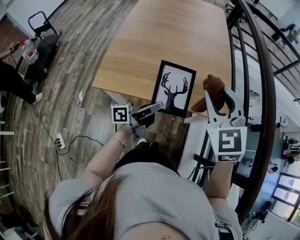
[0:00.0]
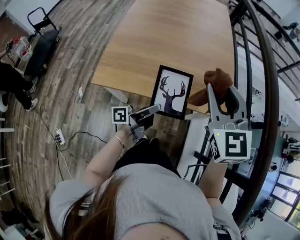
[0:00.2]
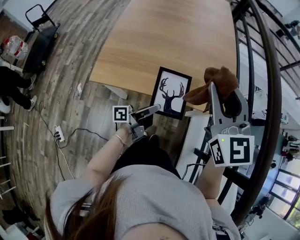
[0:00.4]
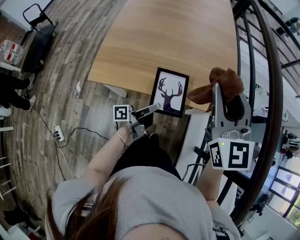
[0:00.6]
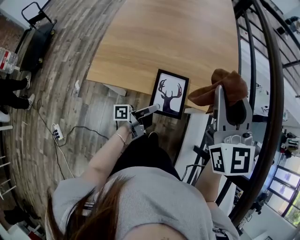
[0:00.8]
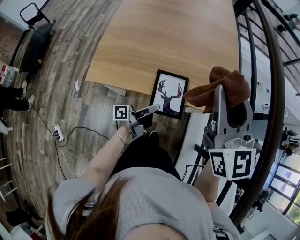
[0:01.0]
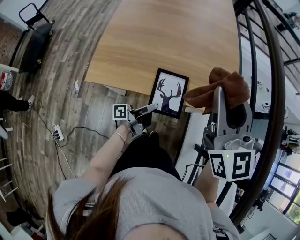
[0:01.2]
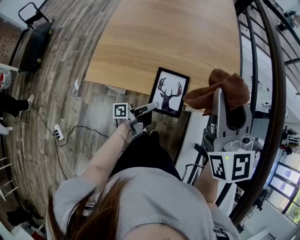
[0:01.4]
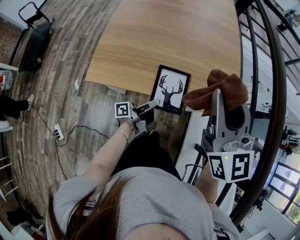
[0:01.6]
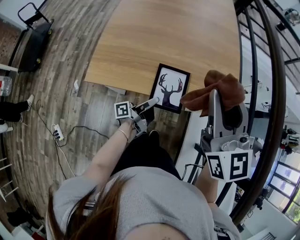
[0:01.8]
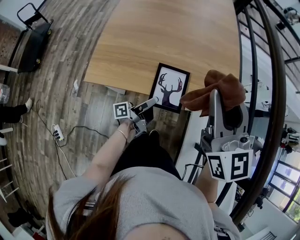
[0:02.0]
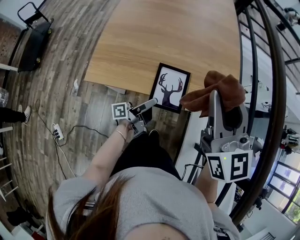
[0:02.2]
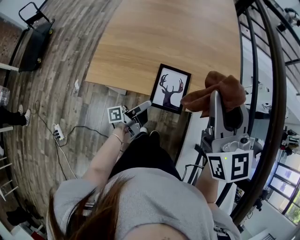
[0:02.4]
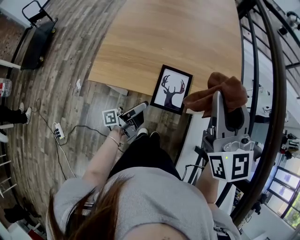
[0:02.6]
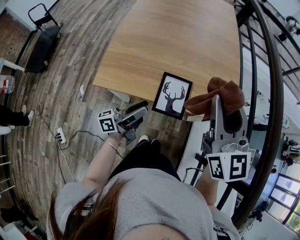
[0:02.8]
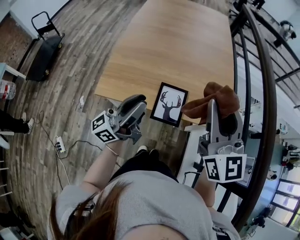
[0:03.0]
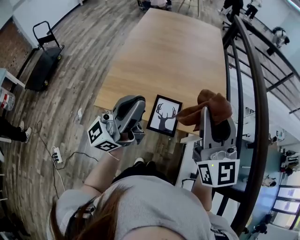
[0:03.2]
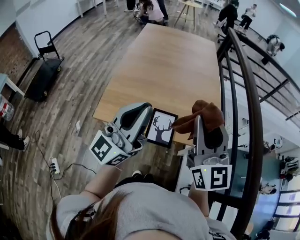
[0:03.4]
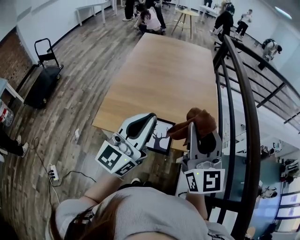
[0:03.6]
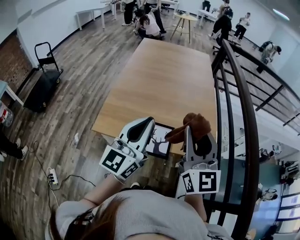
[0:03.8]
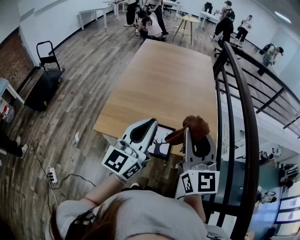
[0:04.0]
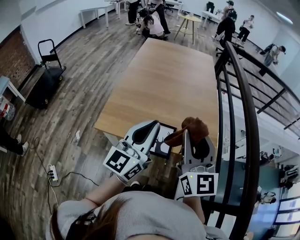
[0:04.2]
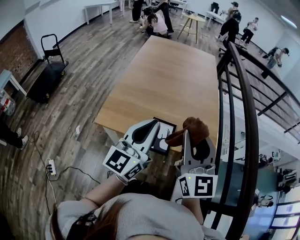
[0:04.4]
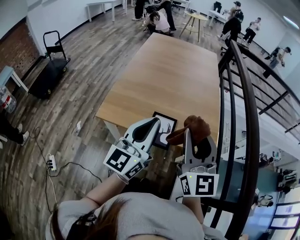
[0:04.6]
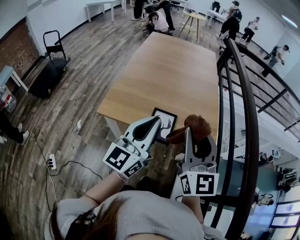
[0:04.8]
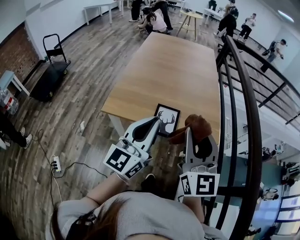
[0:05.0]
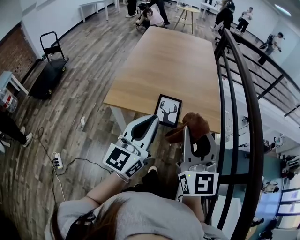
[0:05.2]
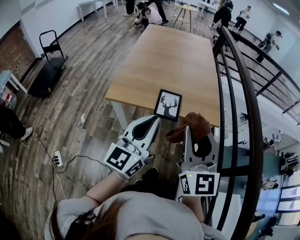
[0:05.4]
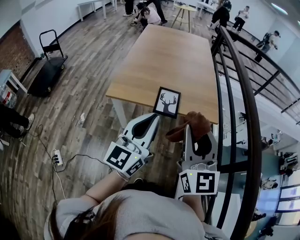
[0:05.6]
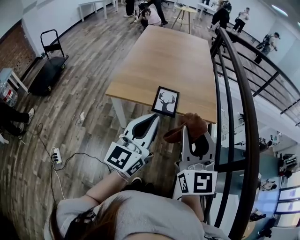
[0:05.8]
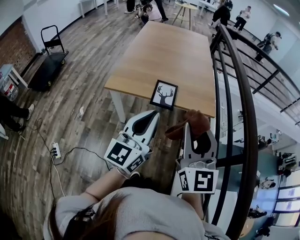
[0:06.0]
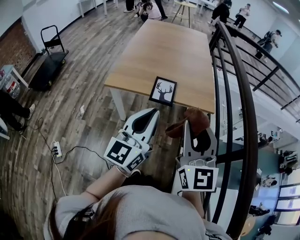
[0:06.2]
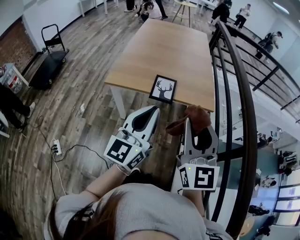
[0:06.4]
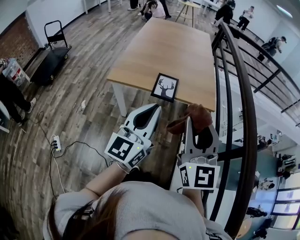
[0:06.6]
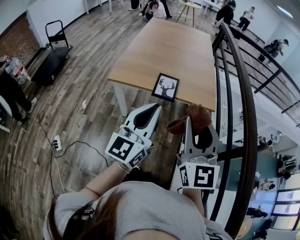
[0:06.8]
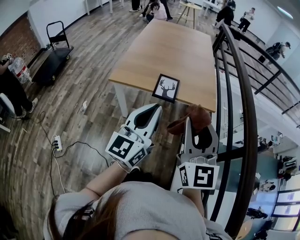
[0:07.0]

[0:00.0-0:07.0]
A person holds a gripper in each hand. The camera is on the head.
0:00.0 to 0:01.4: The left gripper is displaced downward by some 15 cm, and swivels about 20 degrees. Meanwhile the right gripper changes its angle by roughly 40 degrees.
0:01.4 to 0:02.8: The left gripper heads upward and to the left, covering approximately 10 cm, changes its angle by roughly 30 degrees, and opens its fingers.
0:02.8 to 0:04.2: The left gripper goes approximately 25 cm upward, twists approximately 60 degrees clockwise, seen from behind, and closes its fingers. Meanwhile the right gripper shifts by some 5 cm.
0:04.2 to 0:05.6: The grippers both shift backward by some 25 cm.
0:05.6 to 0:07.0: The grippers both shift backward by approximately 5 cm.

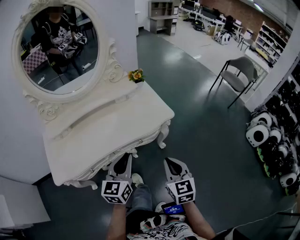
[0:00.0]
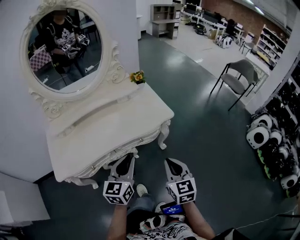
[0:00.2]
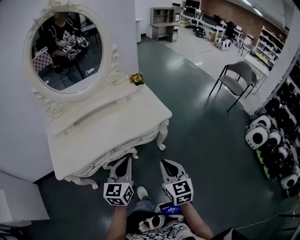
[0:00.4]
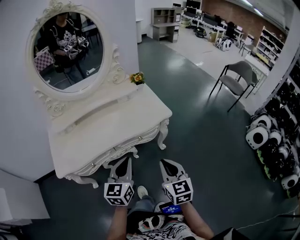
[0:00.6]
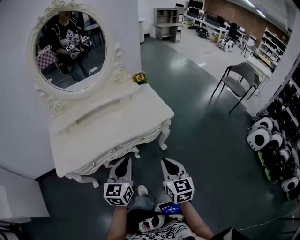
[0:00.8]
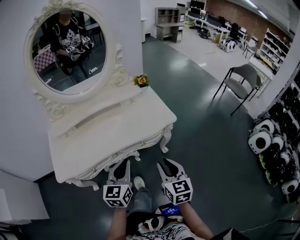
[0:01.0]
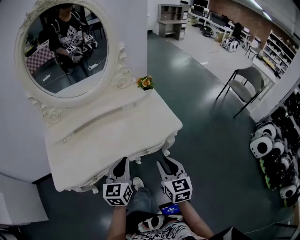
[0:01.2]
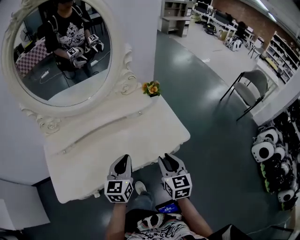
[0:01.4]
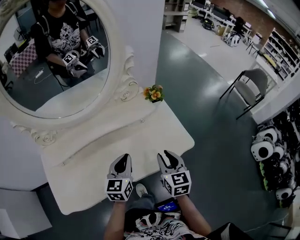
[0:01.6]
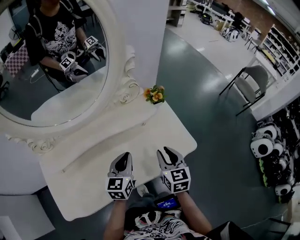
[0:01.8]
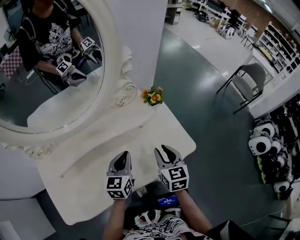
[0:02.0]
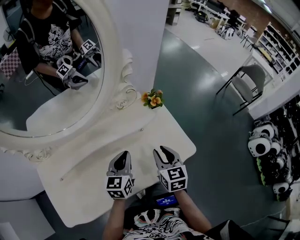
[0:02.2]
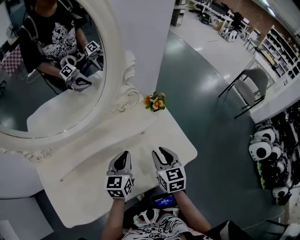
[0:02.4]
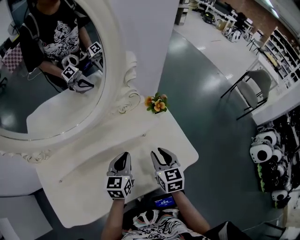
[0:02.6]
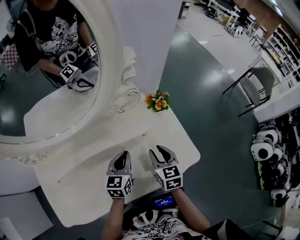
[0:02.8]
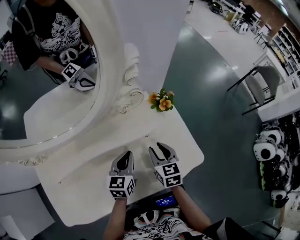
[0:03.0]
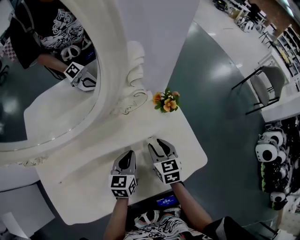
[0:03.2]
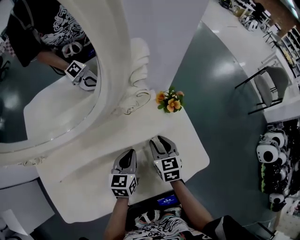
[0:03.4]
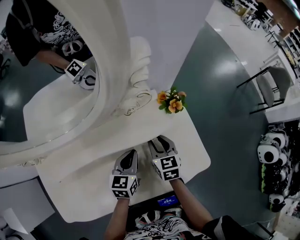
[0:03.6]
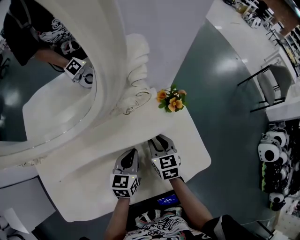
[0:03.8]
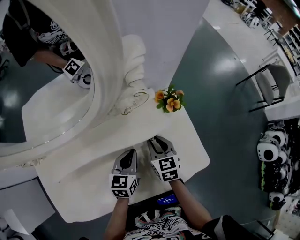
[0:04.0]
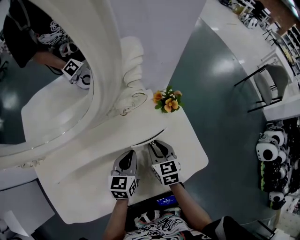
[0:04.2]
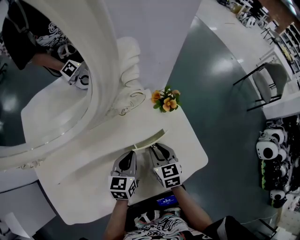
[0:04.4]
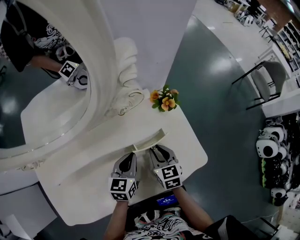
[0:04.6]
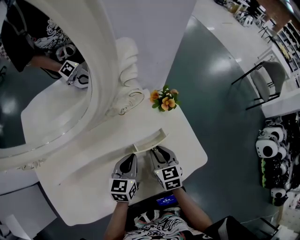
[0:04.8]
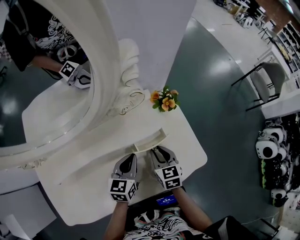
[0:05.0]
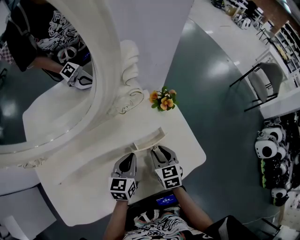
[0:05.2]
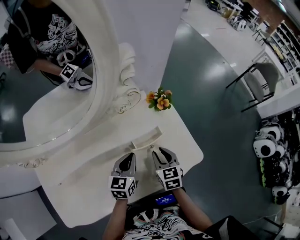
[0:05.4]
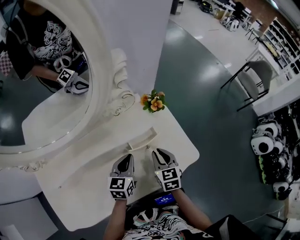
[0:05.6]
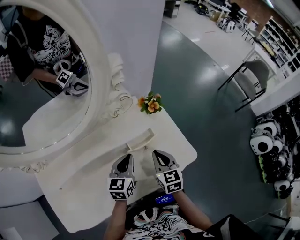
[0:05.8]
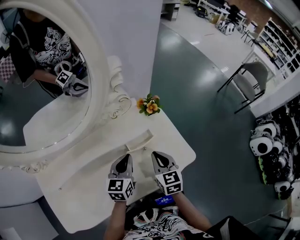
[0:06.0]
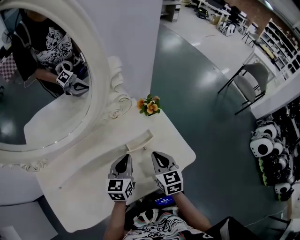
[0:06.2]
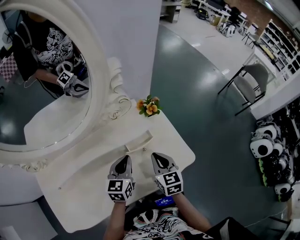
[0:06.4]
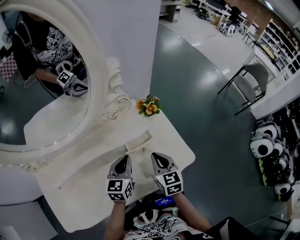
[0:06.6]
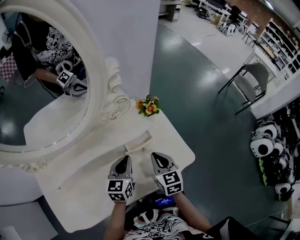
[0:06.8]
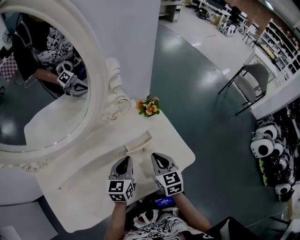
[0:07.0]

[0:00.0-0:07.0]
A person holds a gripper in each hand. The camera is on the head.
0:00.0 to 0:01.4: The left gripper is displaced forward and to the left by some 15 cm; the right gripper goes roughly 15 cm forward, and opens.
0:01.4 to 0:02.8: The left gripper heads forward and downward, covering roughly 25 cm, while the right gripper shifts roughly 20 cm forward.
0:02.8 to 0:04.2: The right gripper goes some 10 cm downward and forward, while the left gripper ends up about 5 cm from where it was.
0:04.2 to 0:05.6: The right gripper goes about 5 cm backward.
0:05.6 to 0:07.0: There are only small adjustments of the grippers.

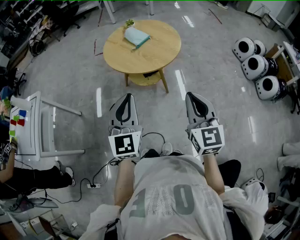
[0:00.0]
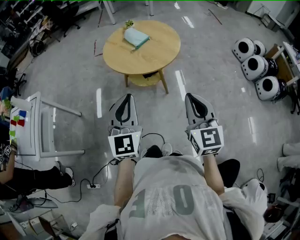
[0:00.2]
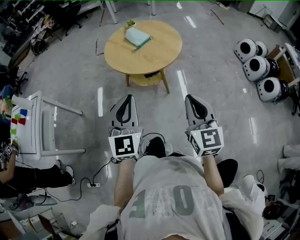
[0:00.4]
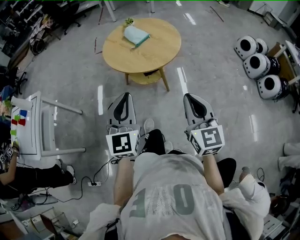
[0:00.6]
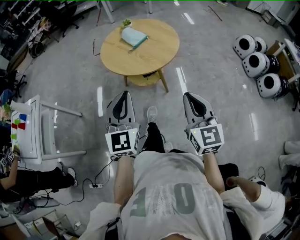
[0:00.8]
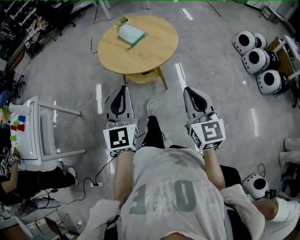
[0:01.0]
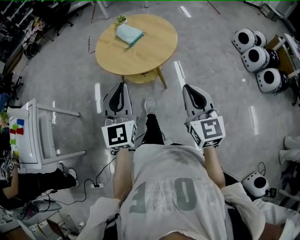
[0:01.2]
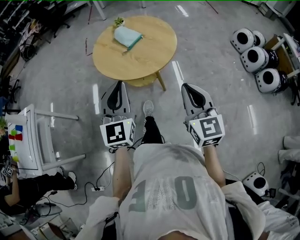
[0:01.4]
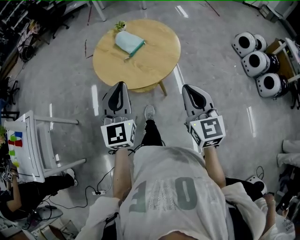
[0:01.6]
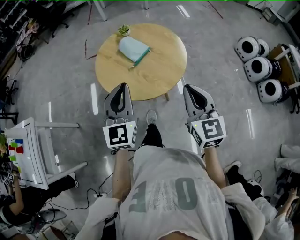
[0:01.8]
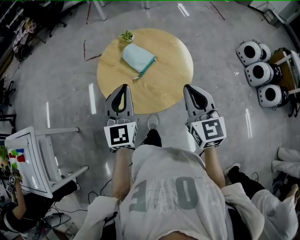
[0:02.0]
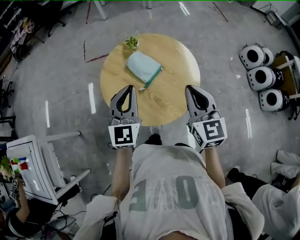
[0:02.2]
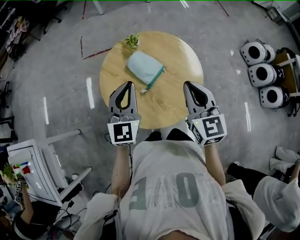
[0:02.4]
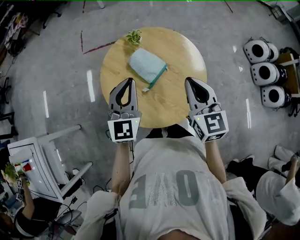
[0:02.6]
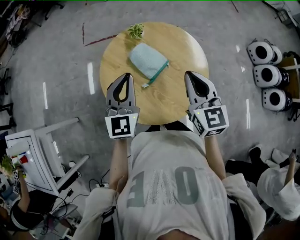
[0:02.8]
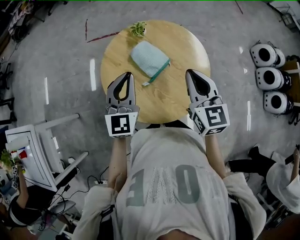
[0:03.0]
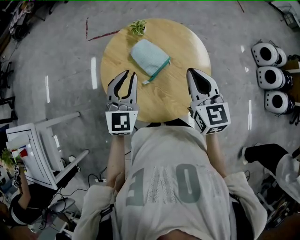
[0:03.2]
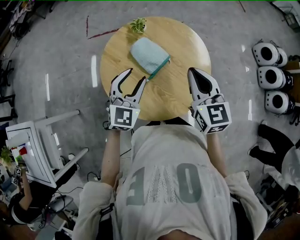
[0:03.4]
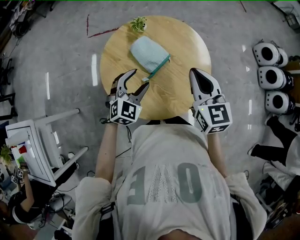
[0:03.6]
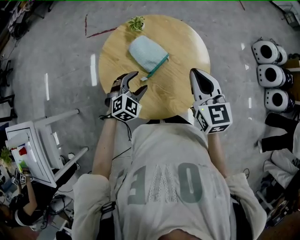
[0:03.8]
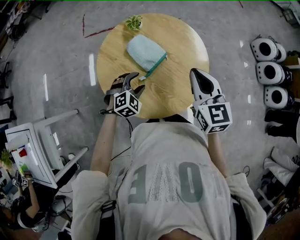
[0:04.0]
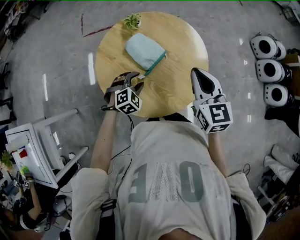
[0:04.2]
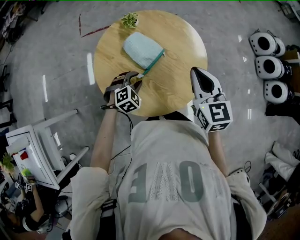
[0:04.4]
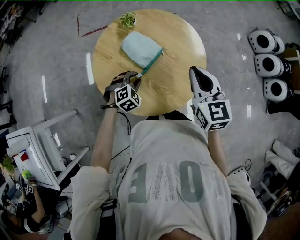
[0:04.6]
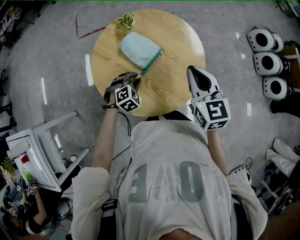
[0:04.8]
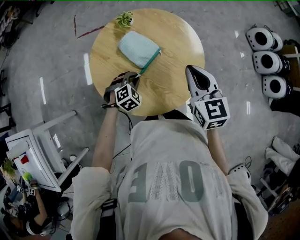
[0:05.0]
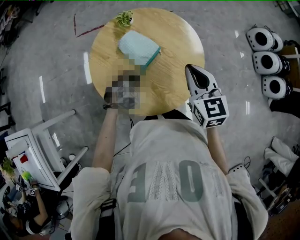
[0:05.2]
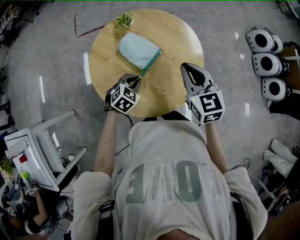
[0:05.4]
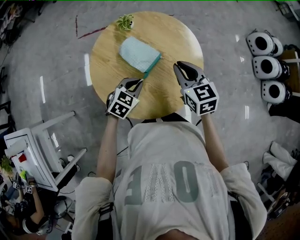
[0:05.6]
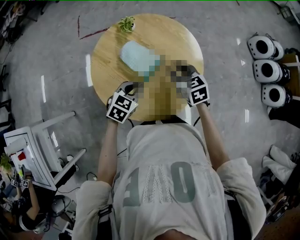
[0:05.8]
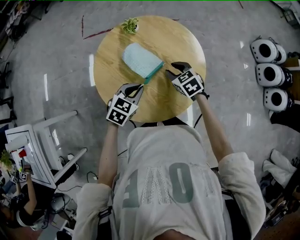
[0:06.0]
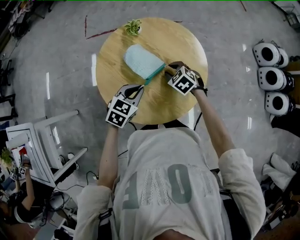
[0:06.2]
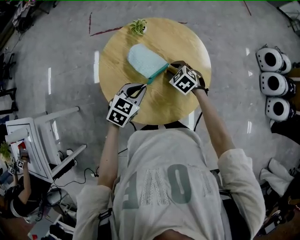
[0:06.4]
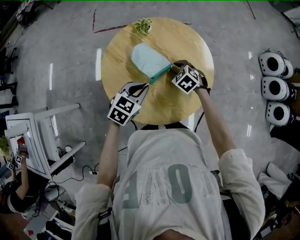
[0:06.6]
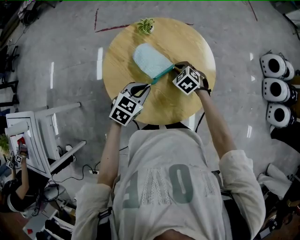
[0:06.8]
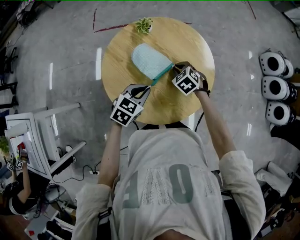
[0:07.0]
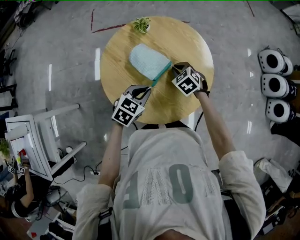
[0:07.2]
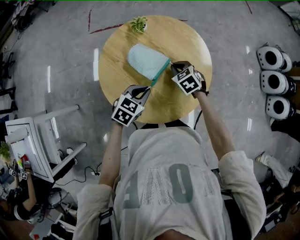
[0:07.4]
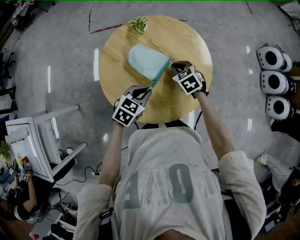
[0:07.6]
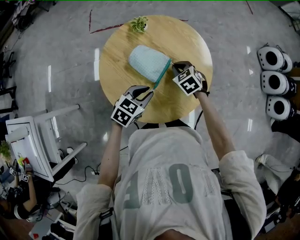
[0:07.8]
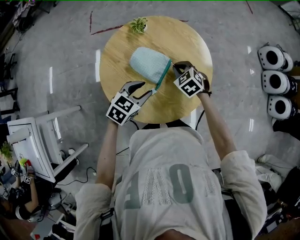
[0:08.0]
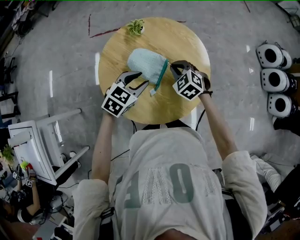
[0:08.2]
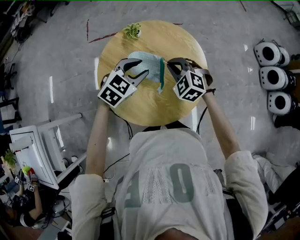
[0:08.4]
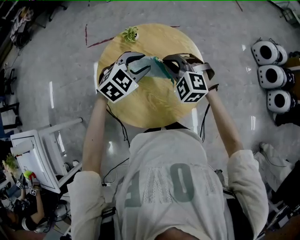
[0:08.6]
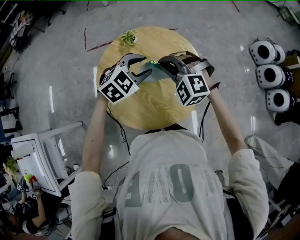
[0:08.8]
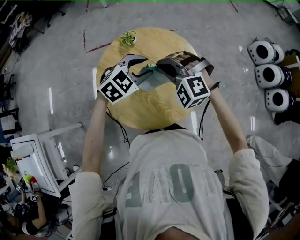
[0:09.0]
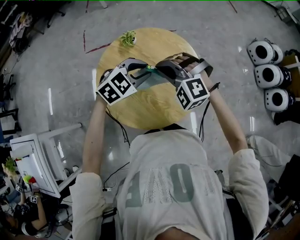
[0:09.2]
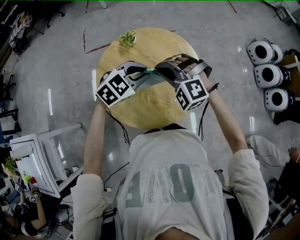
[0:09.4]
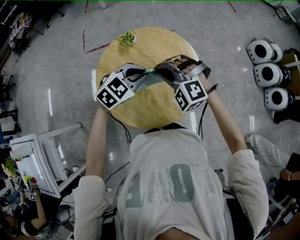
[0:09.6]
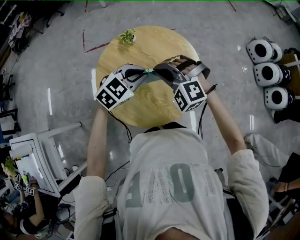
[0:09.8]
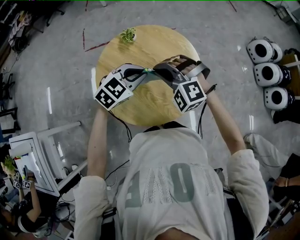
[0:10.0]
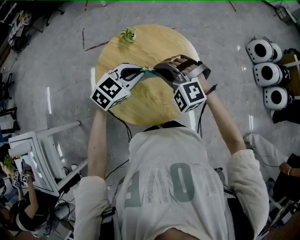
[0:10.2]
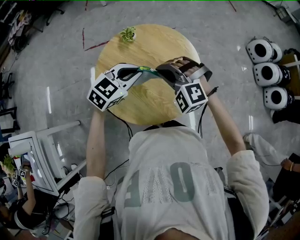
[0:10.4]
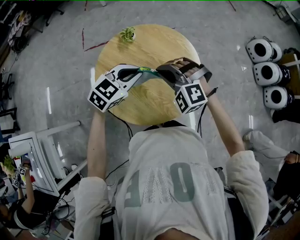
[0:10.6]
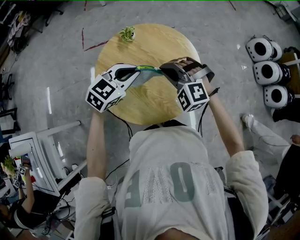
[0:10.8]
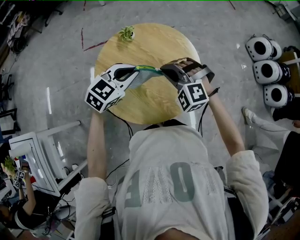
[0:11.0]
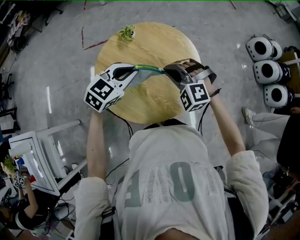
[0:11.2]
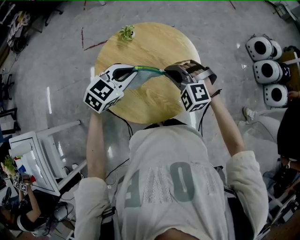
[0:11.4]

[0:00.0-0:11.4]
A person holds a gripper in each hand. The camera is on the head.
0:00.0 to 0:01.4: Both grippers move forward, some 10 cm.
0:01.4 to 0:02.8: The grippers both shift forward by some 40 cm.
0:02.8 to 0:04.2: The right gripper shifts by approximately 5 cm; the left gripper shifts about 25 cm downward, angles its fingers downward, by roughly 50 degrees, and opens.
0:04.2 to 0:05.6: The left gripper turns by some 30 degrees, and closes its fingers. The right gripper is displaced downward by some 5 cm.
0:05.6 to 0:07.2: The right gripper goes about 15 cm downward, turns by about 40 degrees, and opens and closes again.
0:07.2 to 0:08.6: The right gripper is displaced upward by roughly 15 cm, and swivels some 40 degrees, while the left gripper goes some 15 cm upward and forward, turns by approximately 30 degrees, and opens.
0:08.6 to 0:10.0: Both grippers travel together backward, roughly 5 cm. The left gripper closes its fingers.
0:10.0 to 0:11.4: The right gripper ends up roughly 5 cm from where it was.
